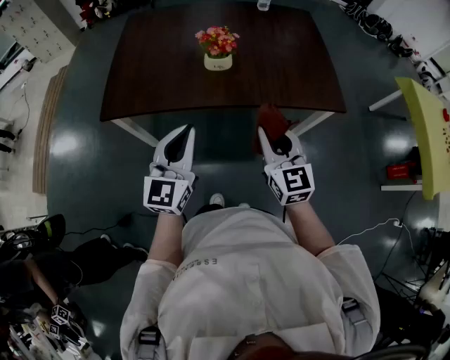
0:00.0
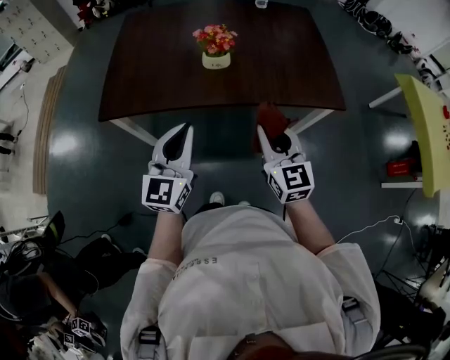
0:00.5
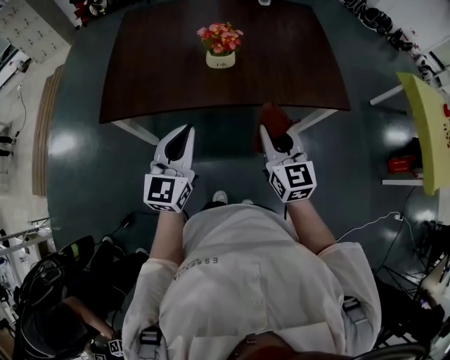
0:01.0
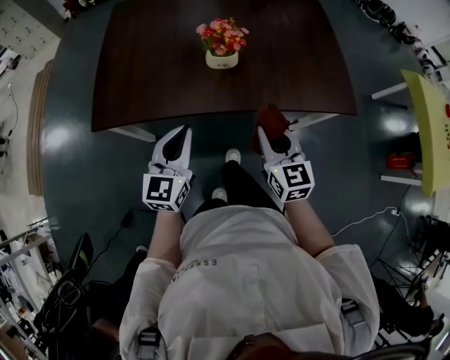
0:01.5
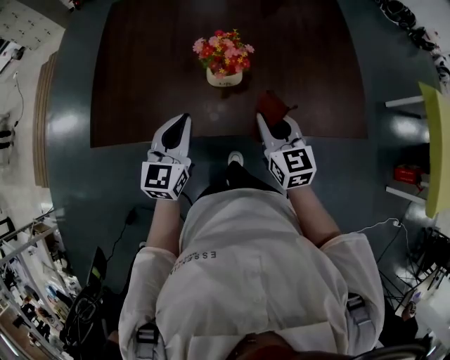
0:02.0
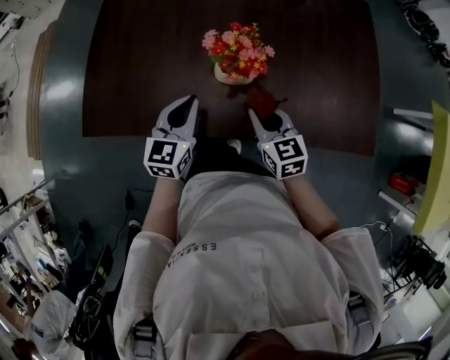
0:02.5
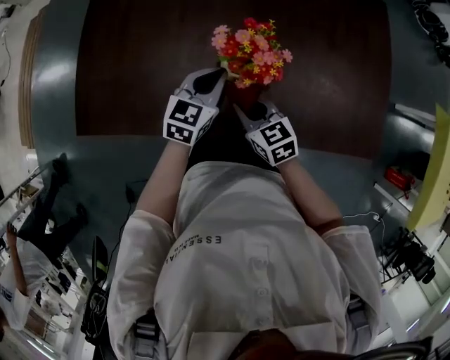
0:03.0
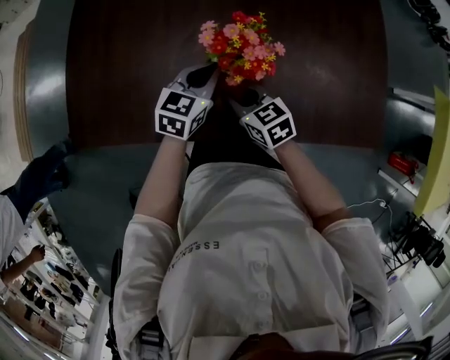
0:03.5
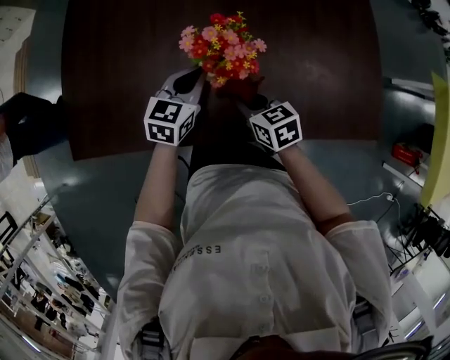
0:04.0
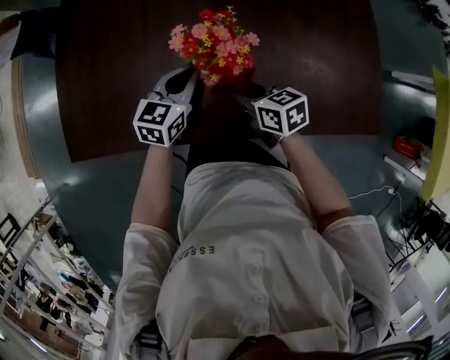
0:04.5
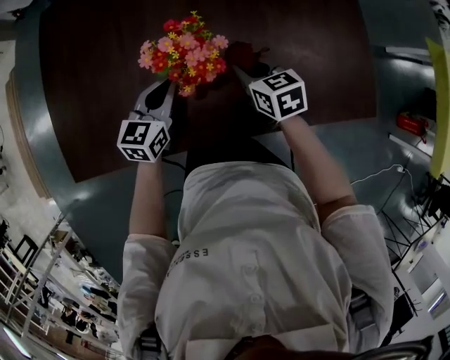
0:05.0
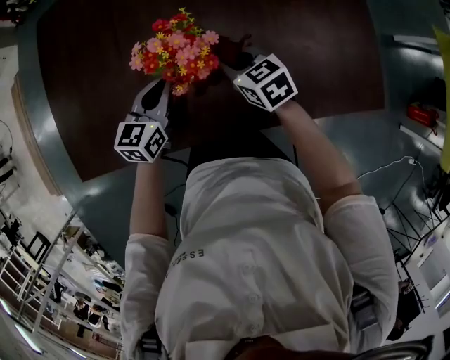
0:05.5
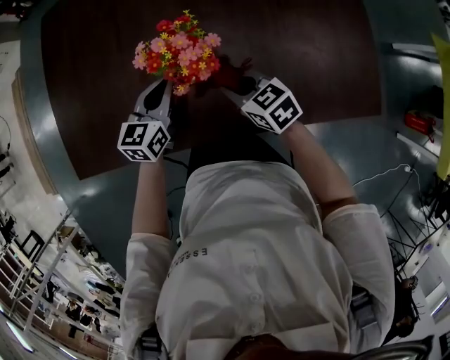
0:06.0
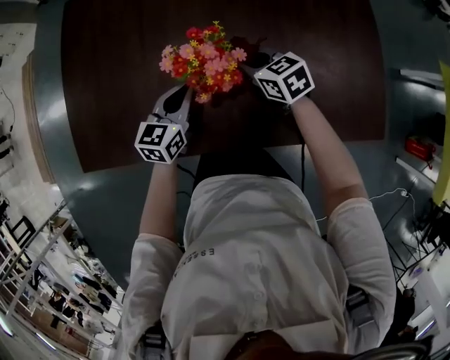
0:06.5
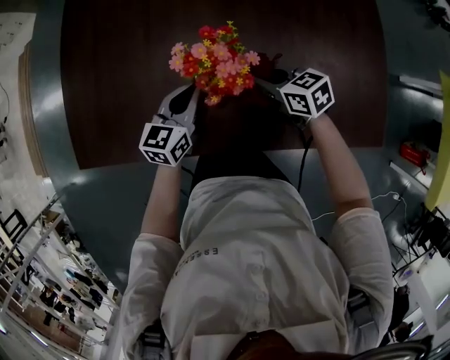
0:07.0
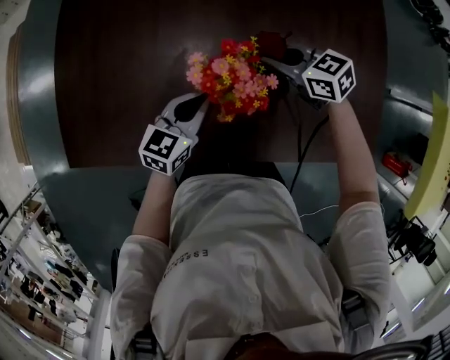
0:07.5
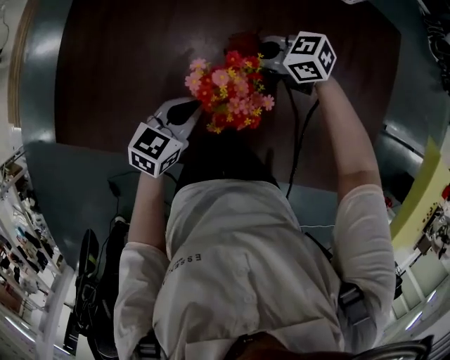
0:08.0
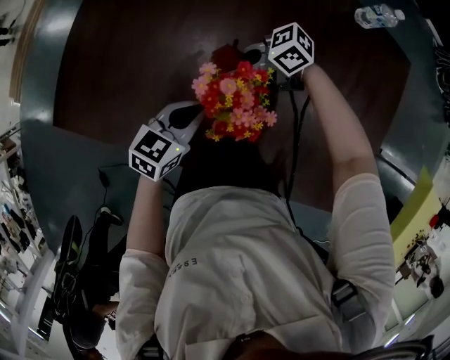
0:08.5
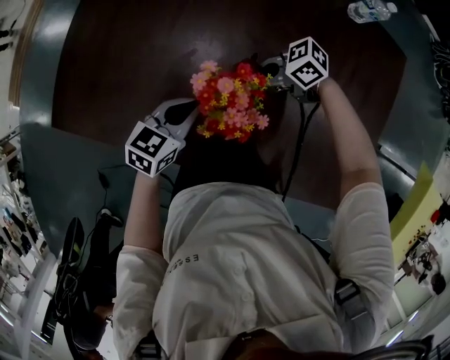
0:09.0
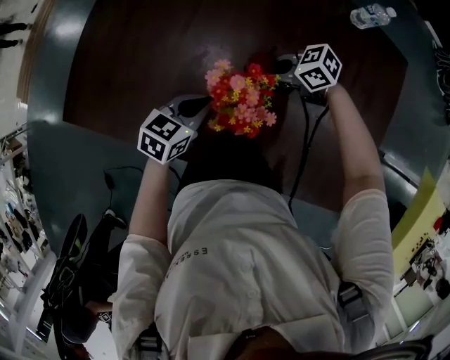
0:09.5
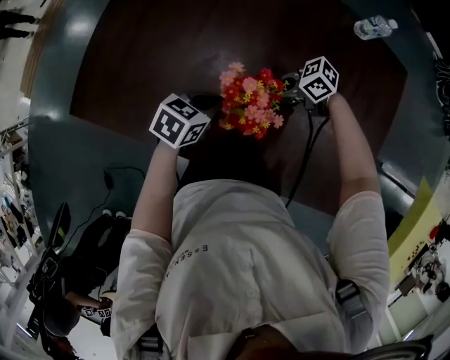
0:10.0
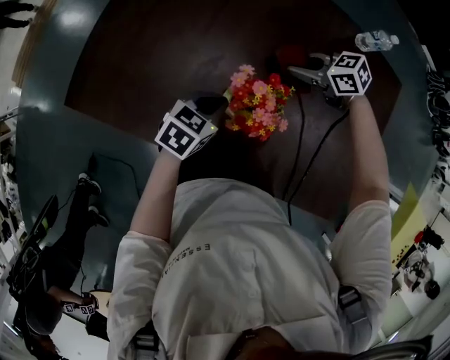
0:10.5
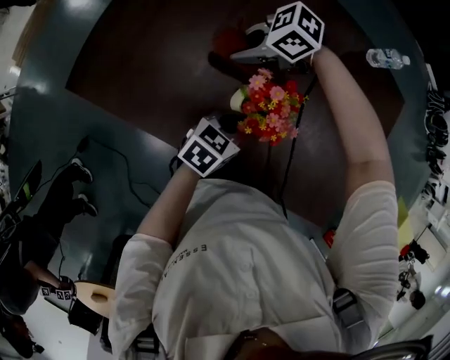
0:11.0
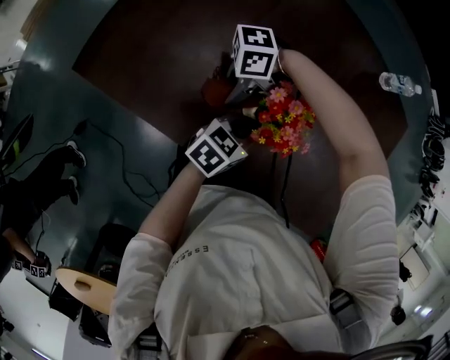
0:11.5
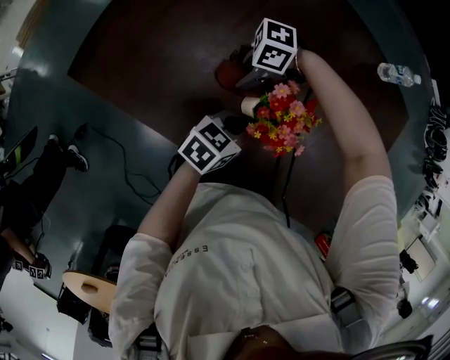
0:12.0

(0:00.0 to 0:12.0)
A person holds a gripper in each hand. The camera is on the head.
0:00.0 - 0:02.0: The two grippers go about 25 cm forward and downward.
0:02.0 - 0:04.0: The right gripper heads downward and forward, covering some 20 cm, and rotates approximately 30 degrees; the left gripper travels forward, downward and to the right by approximately 20 cm, and turns by some 20 degrees.
0:06.0 - 0:08.0: The right gripper shifts by some 20 cm, and changes its angle by some 40 degrees.
0:08.0 - 0:10.0: The right gripper shifts by some 10 cm, and rotates roughly 30 degrees.
0:10.0 - 0:12.0: The left gripper ends up approximately 5 cm from where it was, while the right gripper moves about 10 cm upward and comes back, and changes its angle by approximately 40 degrees.

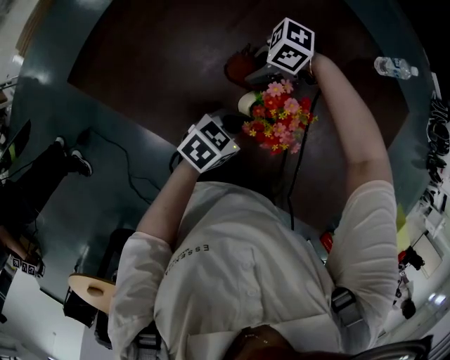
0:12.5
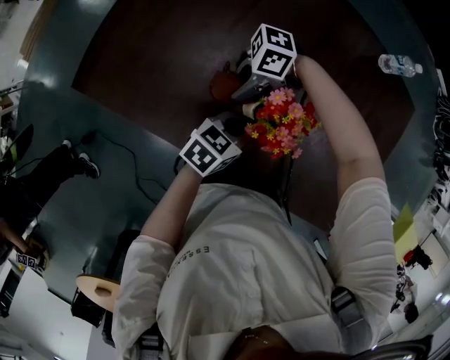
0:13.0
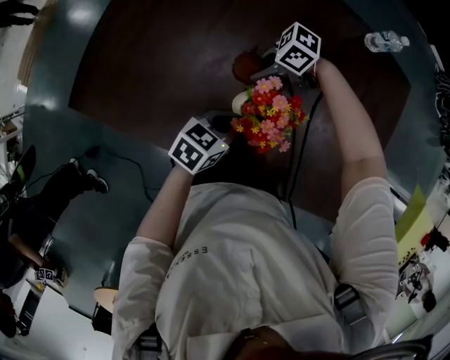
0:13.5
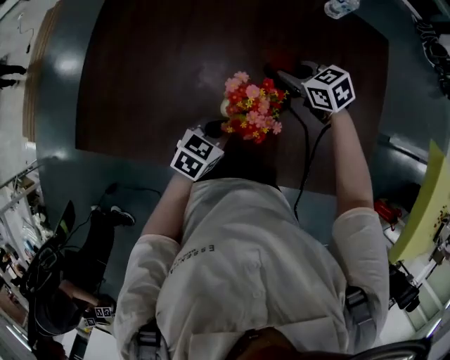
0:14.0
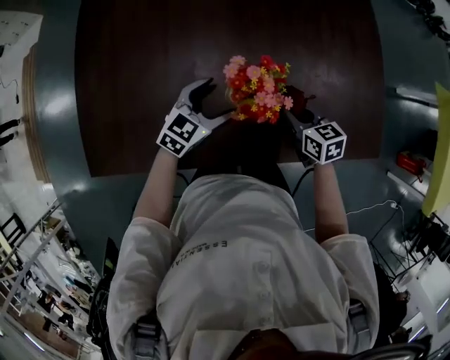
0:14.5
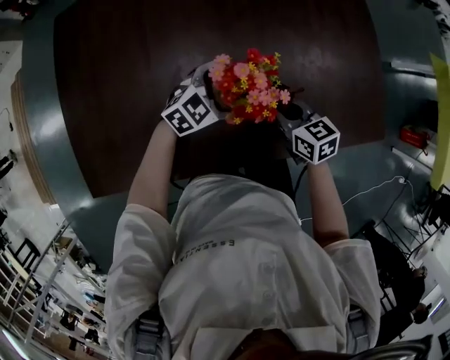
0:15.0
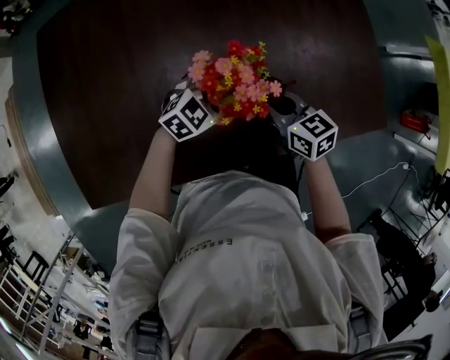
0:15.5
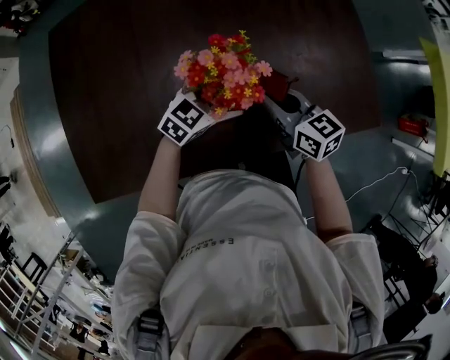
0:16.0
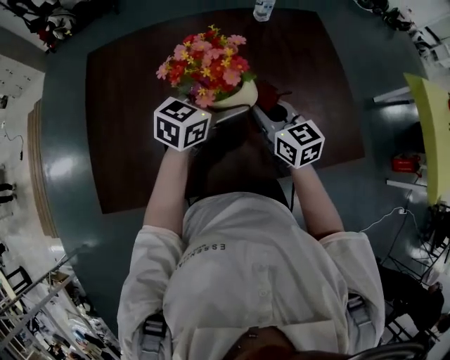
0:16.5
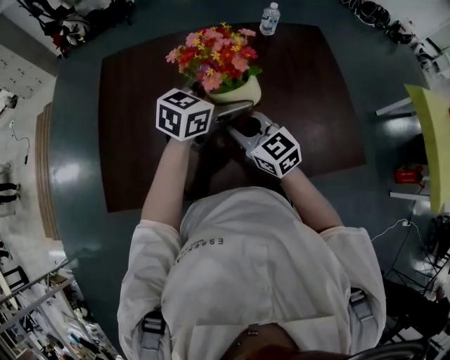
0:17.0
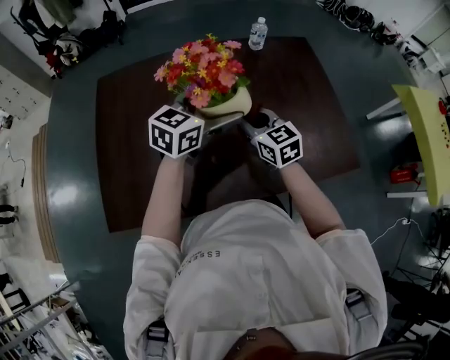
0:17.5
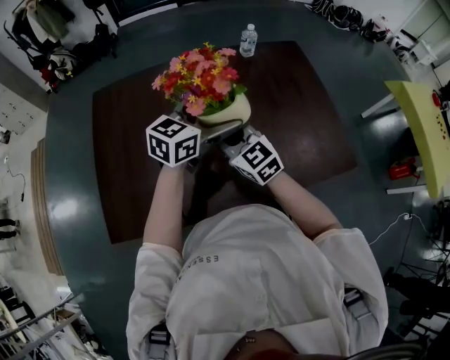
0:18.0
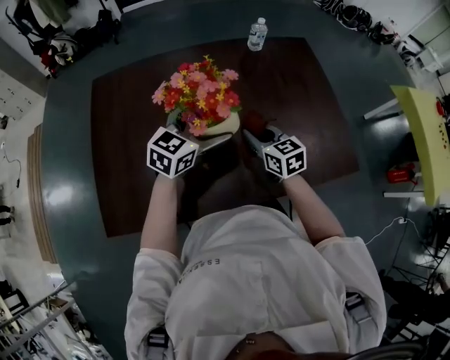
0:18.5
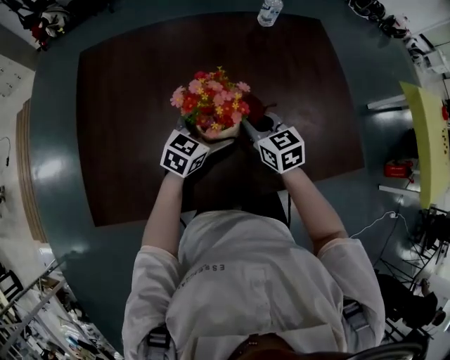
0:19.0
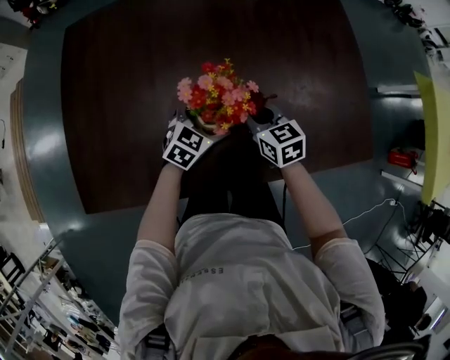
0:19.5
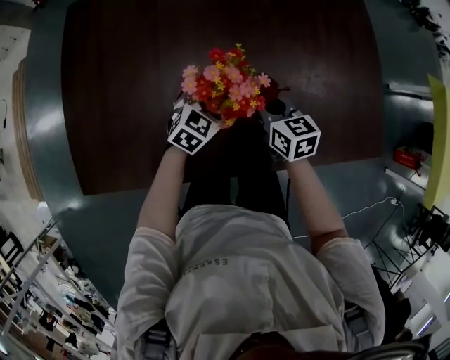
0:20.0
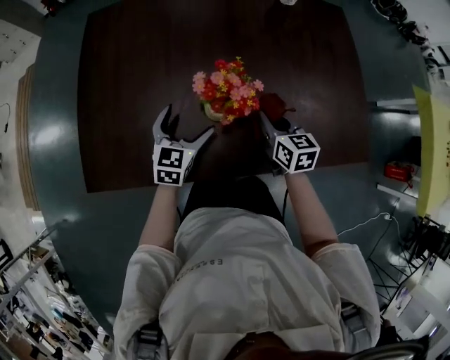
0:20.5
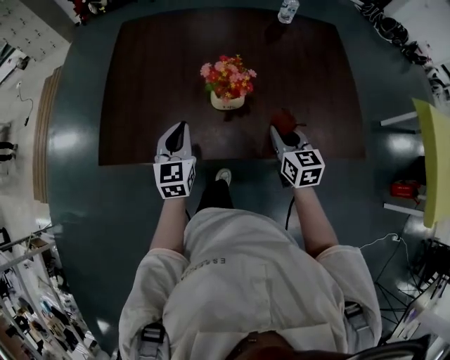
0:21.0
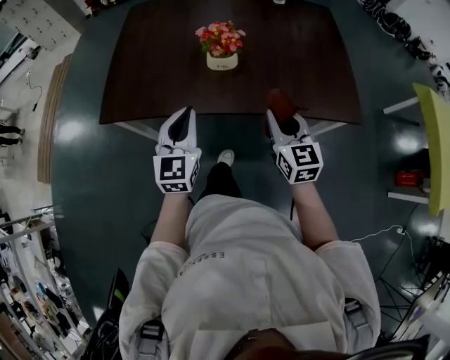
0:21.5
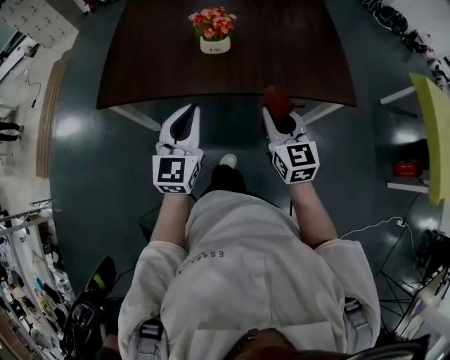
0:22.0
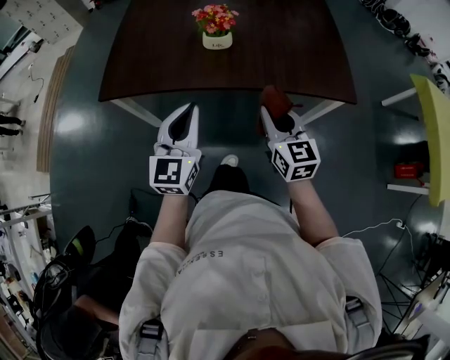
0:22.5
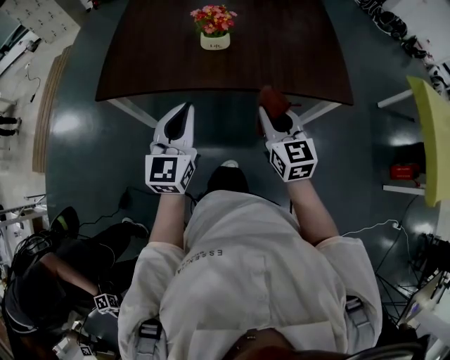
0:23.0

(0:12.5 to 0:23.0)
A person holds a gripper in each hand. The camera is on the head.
0:12.5 - 0:14.5: The left gripper moves approximately 5 cm, turns by approximately 40 degrees, and opens up. The right gripper shifts by approximately 20 cm, and rotates some 100 degrees.
0:14.5 - 0:16.5: The grippers both shift upward by approximately 15 cm. The right gripper changes its angle by approximately 30 degrees.
0:16.5 - 0:19.0: The right gripper shifts some 10 cm downward; the left gripper is displaced downward by approximately 15 cm.
0:19.0 - 0:21.0: The right gripper travels backward and to the right by some 15 cm. The left gripper shifts about 20 cm backward and to the left, changes its angle by some 50 degrees, and closes its fingers.
0:21.0 - 0:23.0: The right gripper shifts approximately 20 cm backward. Meanwhile the left gripper travels backward and upward by approximately 25 cm.

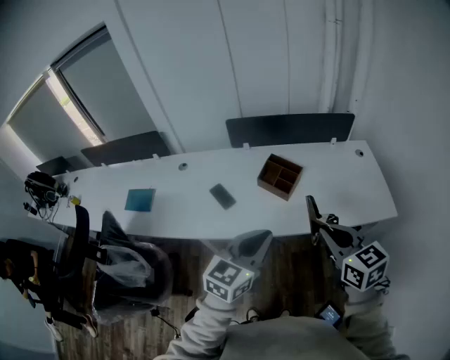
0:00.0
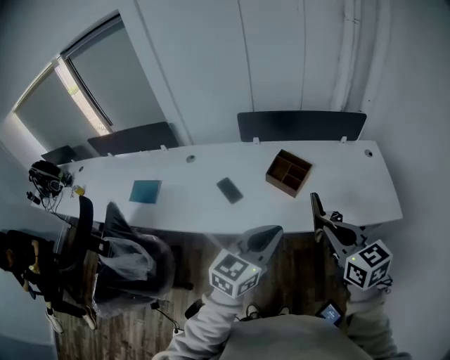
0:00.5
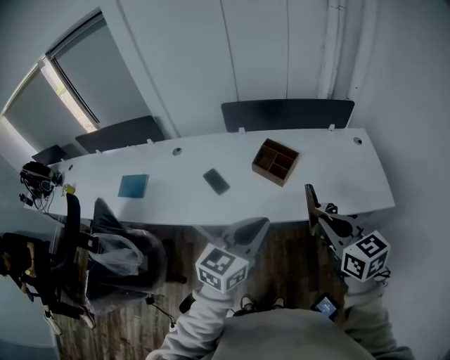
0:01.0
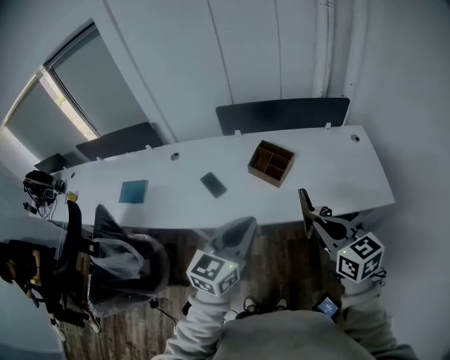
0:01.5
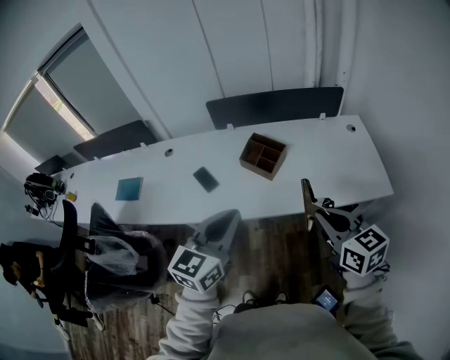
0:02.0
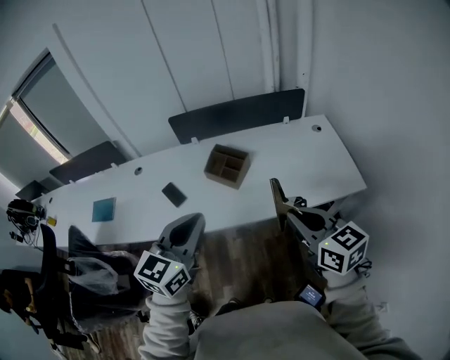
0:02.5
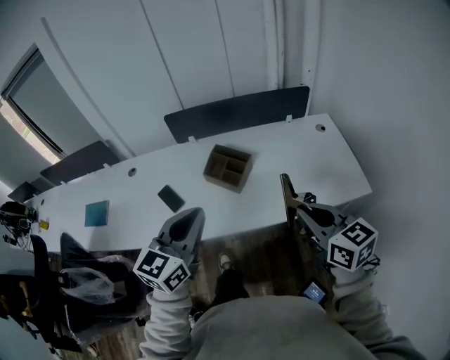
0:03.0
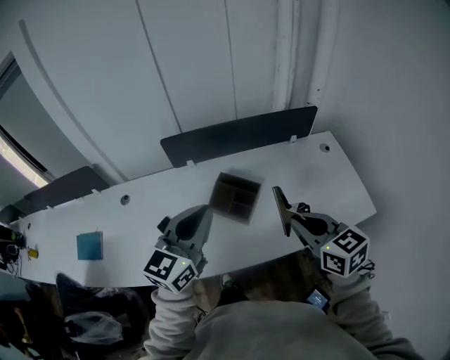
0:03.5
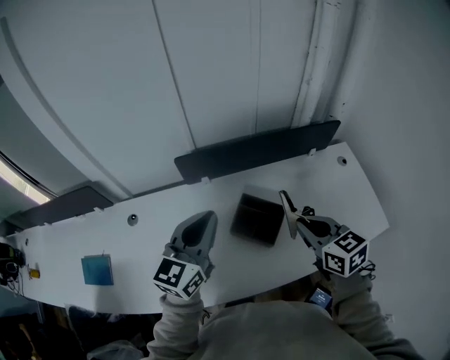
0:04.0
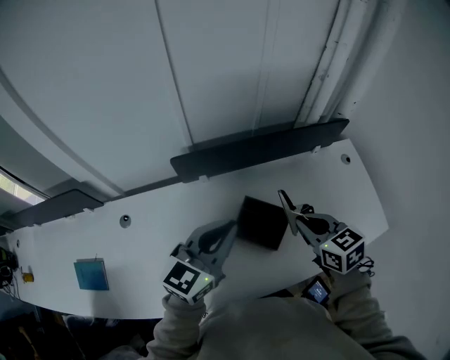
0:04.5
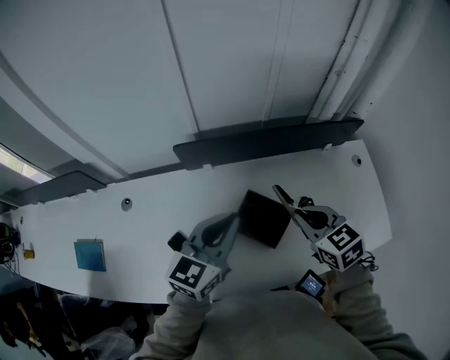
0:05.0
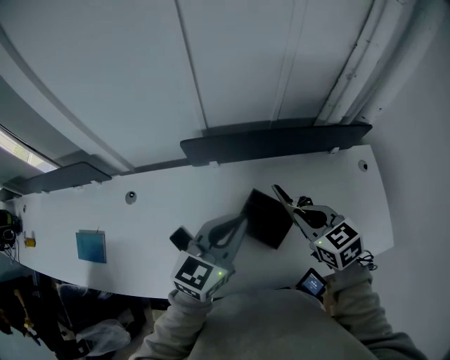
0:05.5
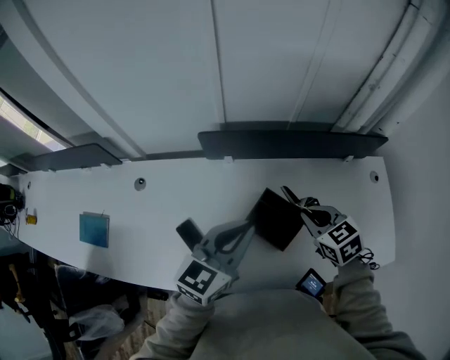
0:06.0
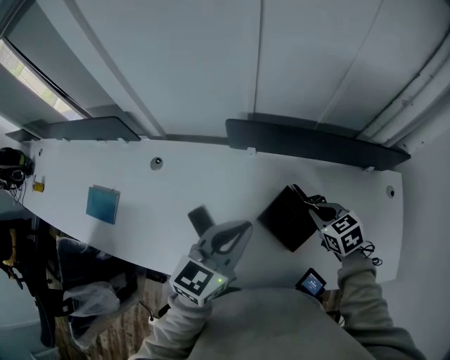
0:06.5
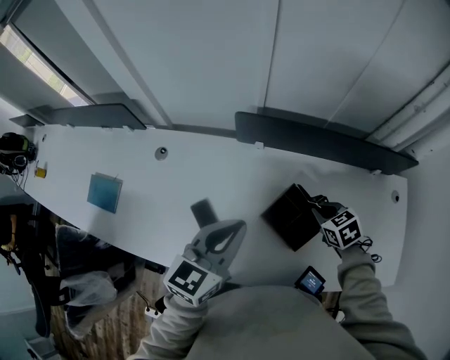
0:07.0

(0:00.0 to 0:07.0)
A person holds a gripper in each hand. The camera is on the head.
0:00.0 - 0:02.0: The right gripper shifts roughly 10 cm to the right.
0:02.0 - 0:03.5: The grippers both shift forward by approximately 20 cm.
0:03.5 - 0:05.0: The left gripper travels forward and downward by some 20 cm; the right gripper heads forward and to the left, covering roughly 25 cm.
0:05.0 - 0:07.0: The left gripper is displaced to the left by about 10 cm; the right gripper travels downward by approximately 15 cm, and changes its angle by about 20 degrees.
